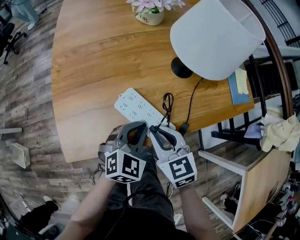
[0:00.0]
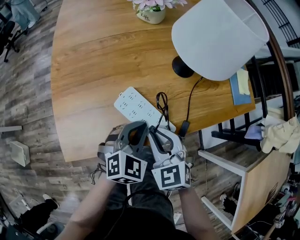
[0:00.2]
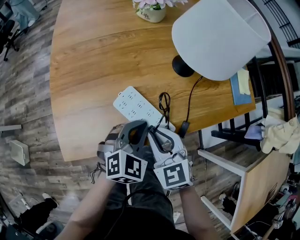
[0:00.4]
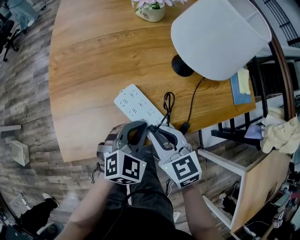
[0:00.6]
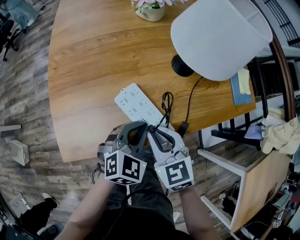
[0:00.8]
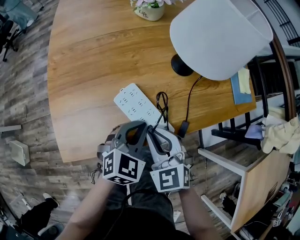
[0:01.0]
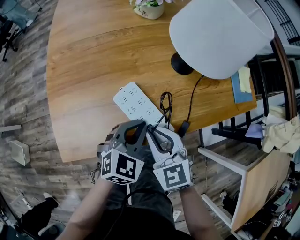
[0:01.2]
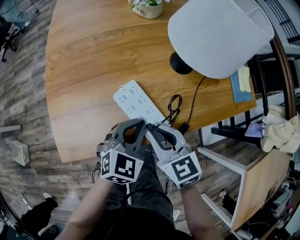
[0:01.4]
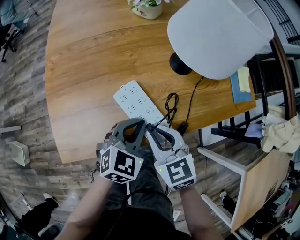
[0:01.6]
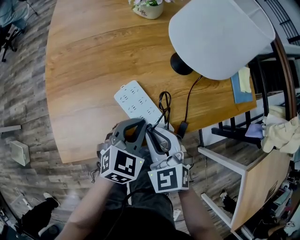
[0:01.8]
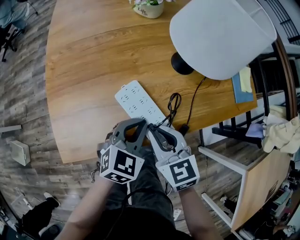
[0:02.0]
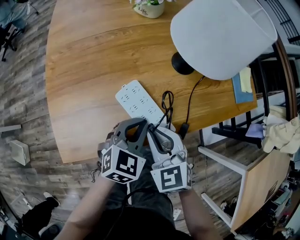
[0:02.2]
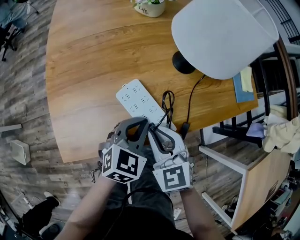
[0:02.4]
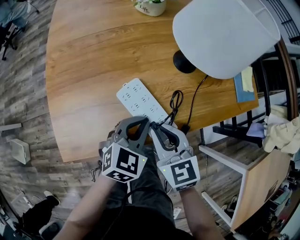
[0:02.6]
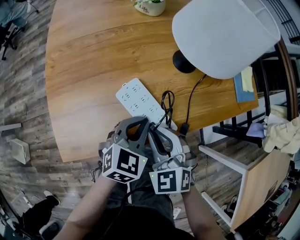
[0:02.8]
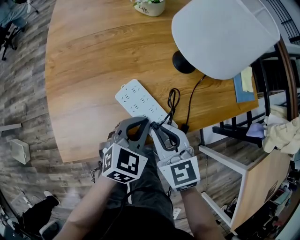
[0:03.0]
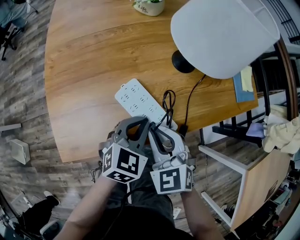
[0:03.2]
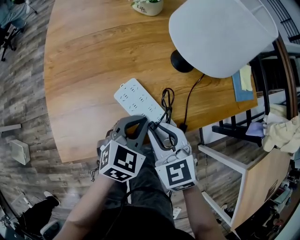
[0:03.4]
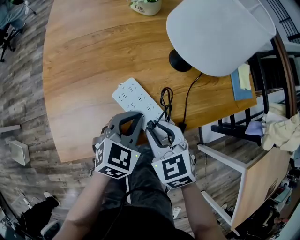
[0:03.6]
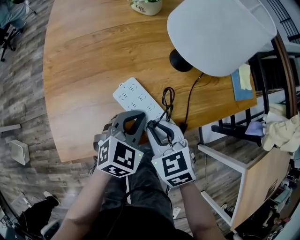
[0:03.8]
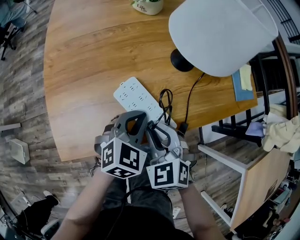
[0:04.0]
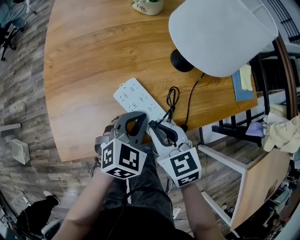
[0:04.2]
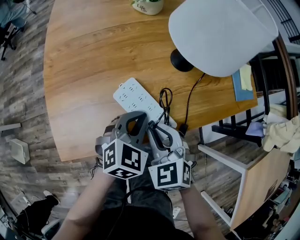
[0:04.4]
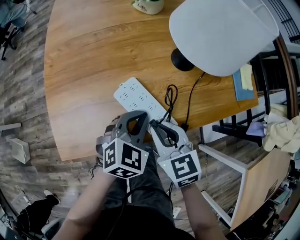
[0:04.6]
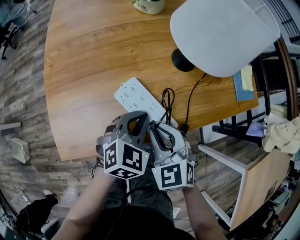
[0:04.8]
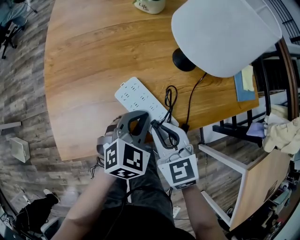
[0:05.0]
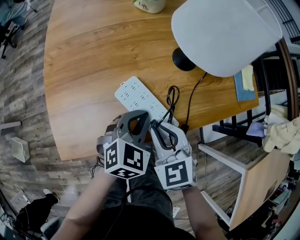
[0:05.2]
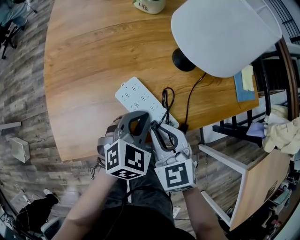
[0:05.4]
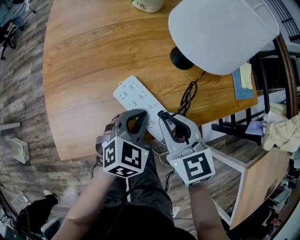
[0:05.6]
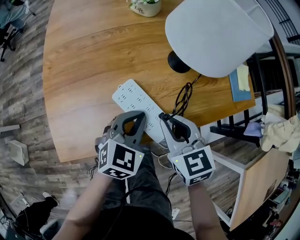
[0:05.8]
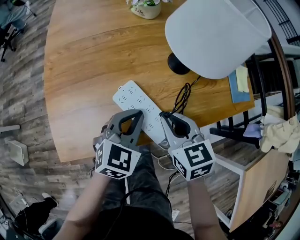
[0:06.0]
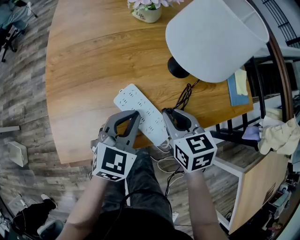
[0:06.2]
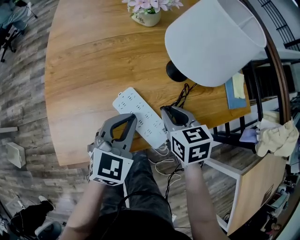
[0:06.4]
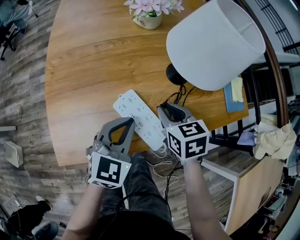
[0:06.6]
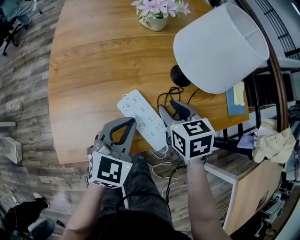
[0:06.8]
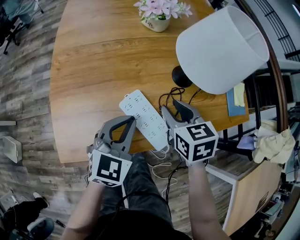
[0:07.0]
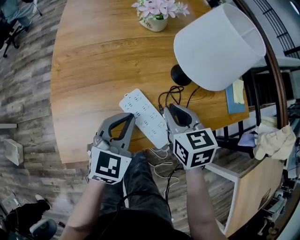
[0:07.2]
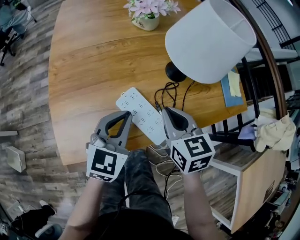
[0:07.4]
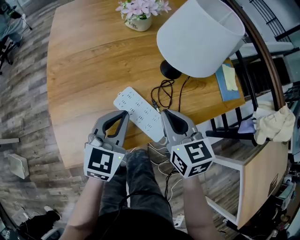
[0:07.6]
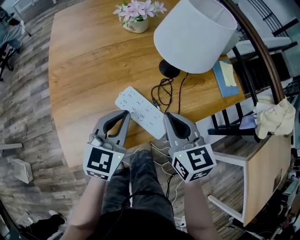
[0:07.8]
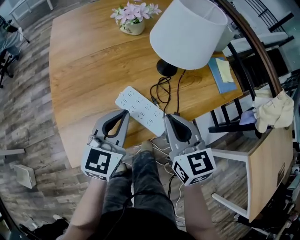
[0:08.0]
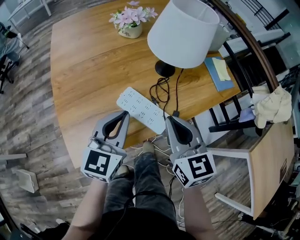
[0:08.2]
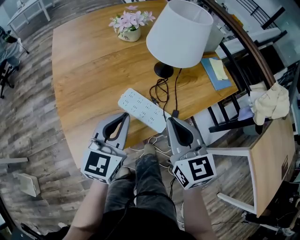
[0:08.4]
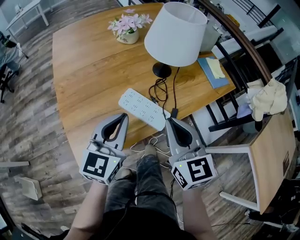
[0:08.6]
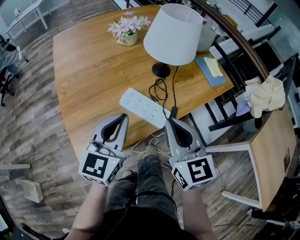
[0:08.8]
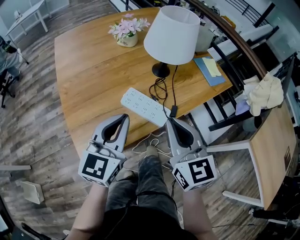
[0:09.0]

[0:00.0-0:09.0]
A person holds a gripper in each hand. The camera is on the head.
0:00.0 to 0:01.6: The grippers make only small movements.
0:03.0 to 0:04.4: The right gripper swivels approximately 20 degrees.
0:04.4 to 0:06.0: The right gripper ends up about 5 cm from where it was, and swivels some 30 degrees.
0:06.0 to 0:07.6: The left gripper moves about 5 cm; the right gripper ends up roughly 5 cm from where it was.
0:07.6 to 0:09.0: The right gripper heads backward and upward, covering some 15 cm, and changes its angle by some 20 degrees. The left gripper is displaced upward and backward by roughly 15 cm.

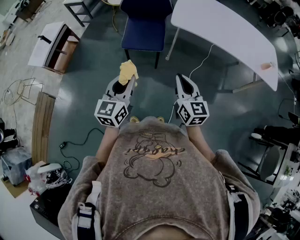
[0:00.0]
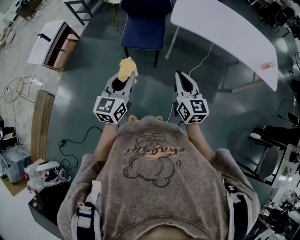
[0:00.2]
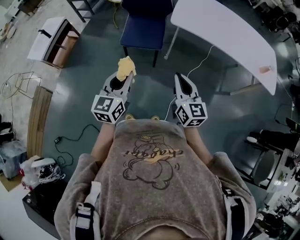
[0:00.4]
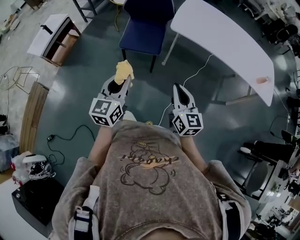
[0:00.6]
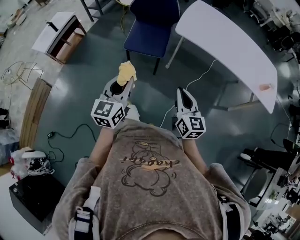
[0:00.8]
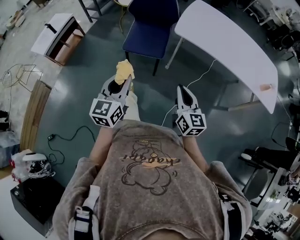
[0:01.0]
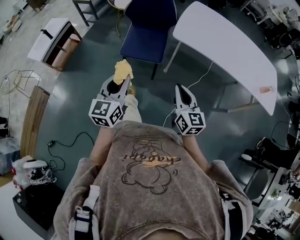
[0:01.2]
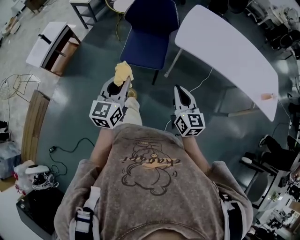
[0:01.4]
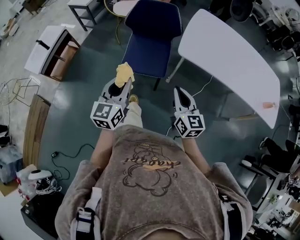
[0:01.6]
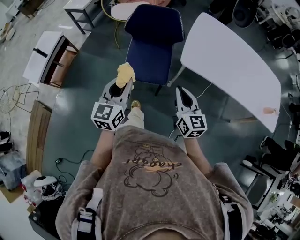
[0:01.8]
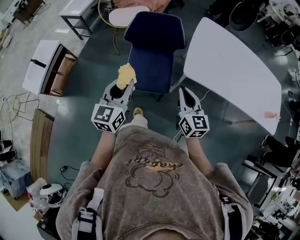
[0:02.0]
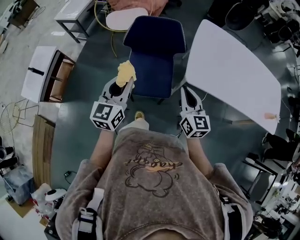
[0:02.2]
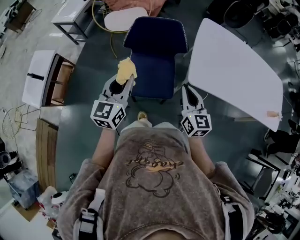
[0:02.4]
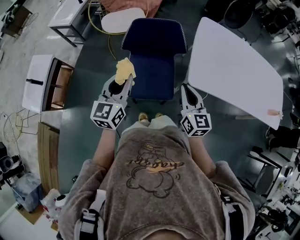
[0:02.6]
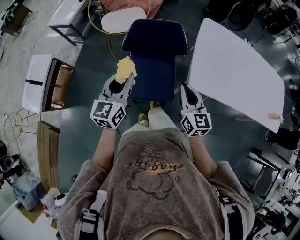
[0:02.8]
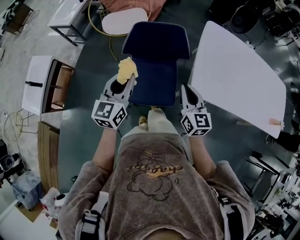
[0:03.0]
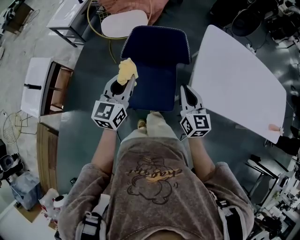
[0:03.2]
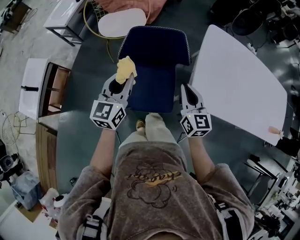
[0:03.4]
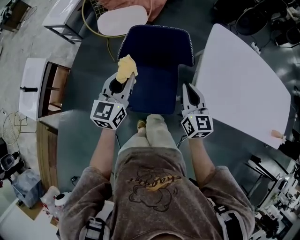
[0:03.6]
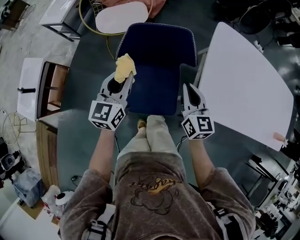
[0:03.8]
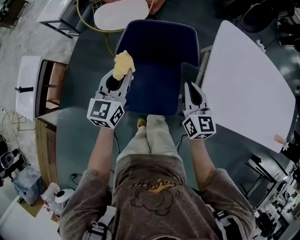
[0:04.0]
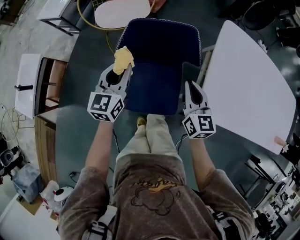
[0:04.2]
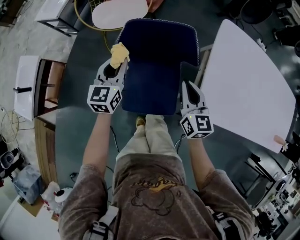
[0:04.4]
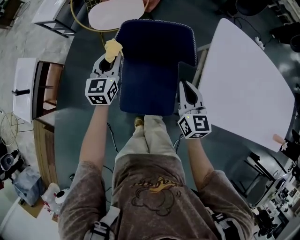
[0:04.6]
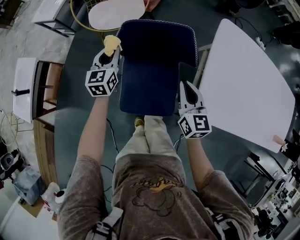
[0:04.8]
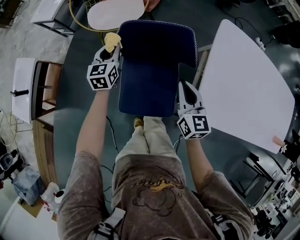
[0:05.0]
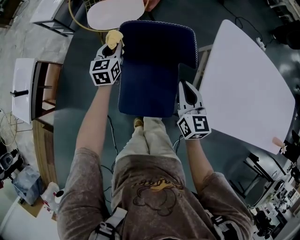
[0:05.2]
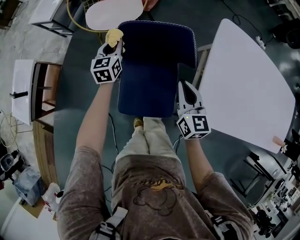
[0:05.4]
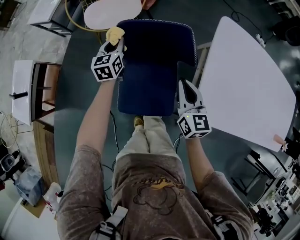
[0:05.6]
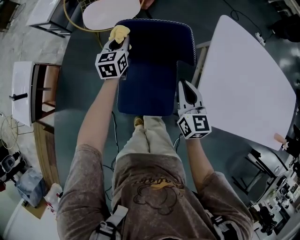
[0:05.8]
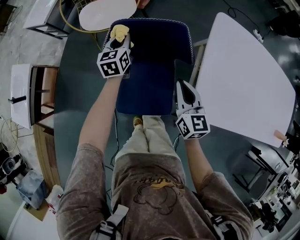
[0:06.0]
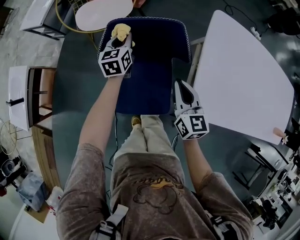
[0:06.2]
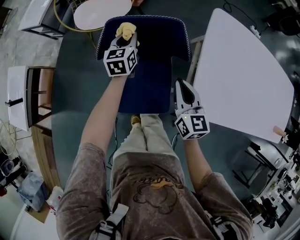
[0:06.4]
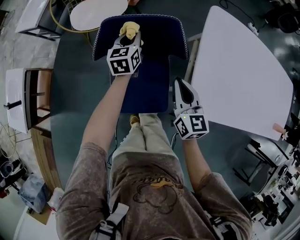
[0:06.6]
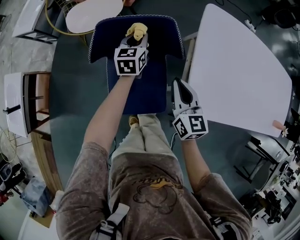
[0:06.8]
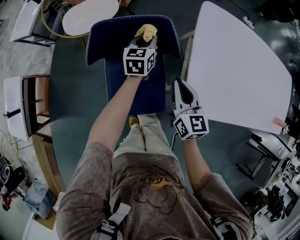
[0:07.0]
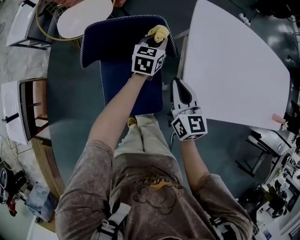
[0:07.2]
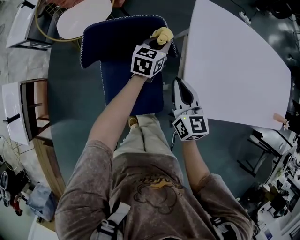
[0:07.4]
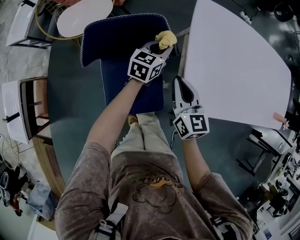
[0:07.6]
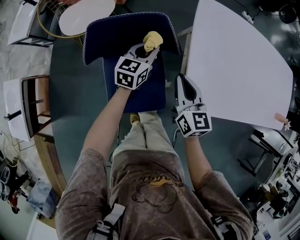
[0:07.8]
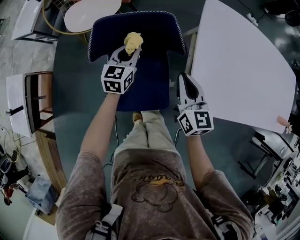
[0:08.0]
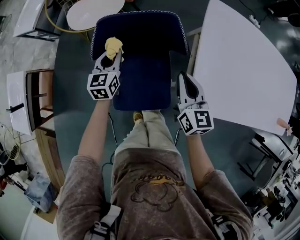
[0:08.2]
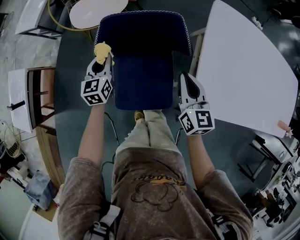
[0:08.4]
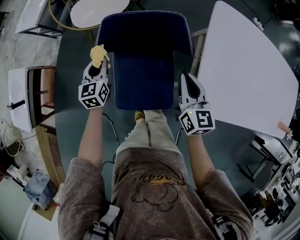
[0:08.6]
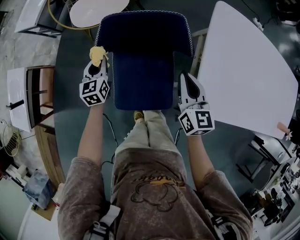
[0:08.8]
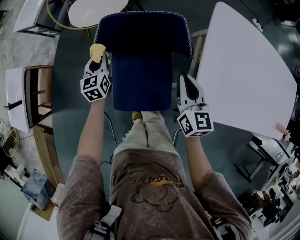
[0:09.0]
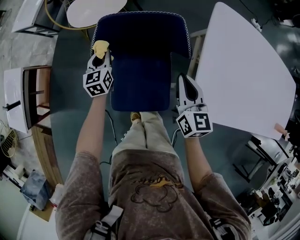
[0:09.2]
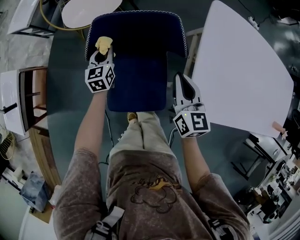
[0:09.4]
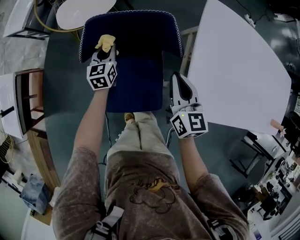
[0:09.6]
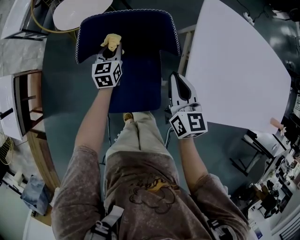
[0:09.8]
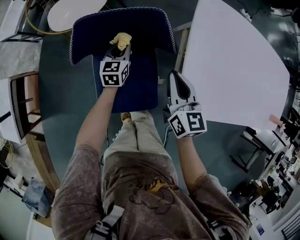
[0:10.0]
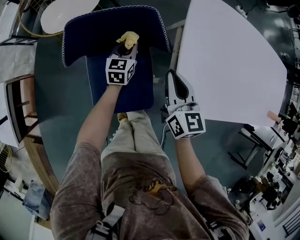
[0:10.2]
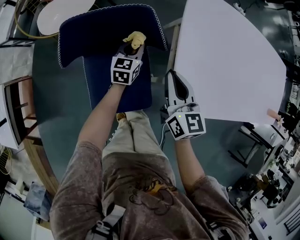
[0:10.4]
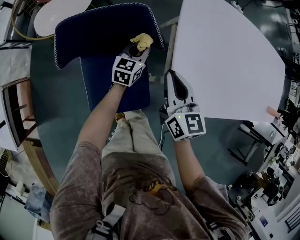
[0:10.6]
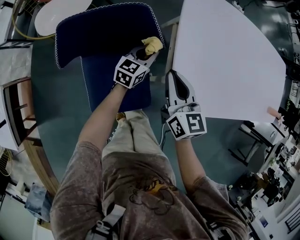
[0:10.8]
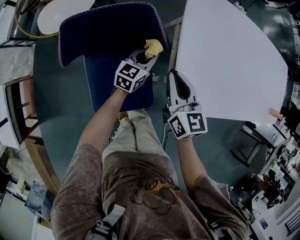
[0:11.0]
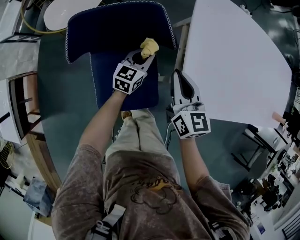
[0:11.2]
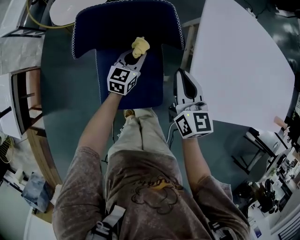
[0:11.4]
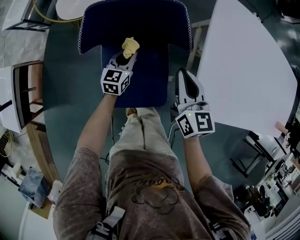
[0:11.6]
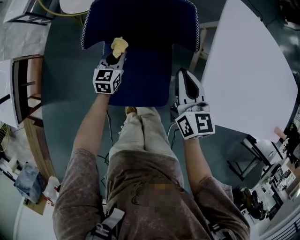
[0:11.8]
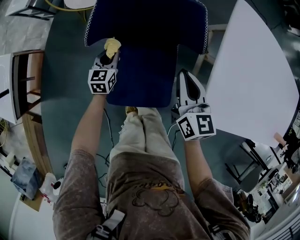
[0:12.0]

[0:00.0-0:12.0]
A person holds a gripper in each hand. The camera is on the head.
0:00.0 to 0:01.6: Both grippers move forward, about 20 cm.
0:01.6 to 0:03.0: The grippers both shift forward by approximately 30 cm.
0:03.0 to 0:04.4: Both grippers move forward and downward, some 20 cm.
0:04.4 to 0:06.0: The left gripper travels forward and downward by roughly 15 cm.
0:06.0 to 0:07.6: The left gripper shifts approximately 25 cm to the right, and changes its angle by some 40 degrees, while the right gripper goes some 5 cm to the right.
0:07.6 to 0:09.0: The left gripper shifts by roughly 35 cm, and swivels some 40 degrees.
0:09.0 to 0:10.4: The right gripper travels to the right by some 5 cm. The left gripper shifts roughly 30 cm to the right, and rotates some 30 degrees.
0:10.4 to 0:12.0: The left gripper shifts about 25 cm to the left and backward, while the right gripper moves to the left, about 10 cm.

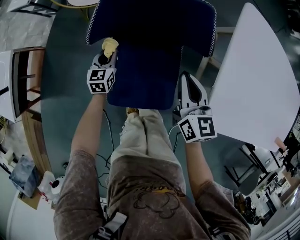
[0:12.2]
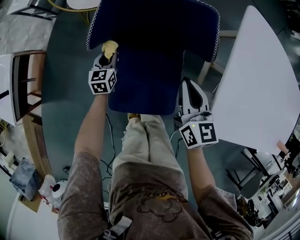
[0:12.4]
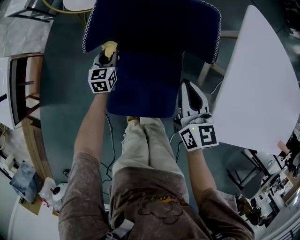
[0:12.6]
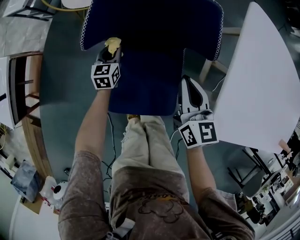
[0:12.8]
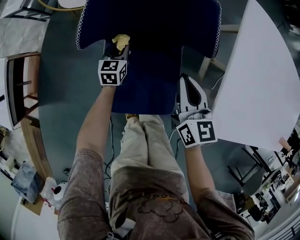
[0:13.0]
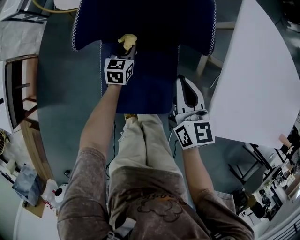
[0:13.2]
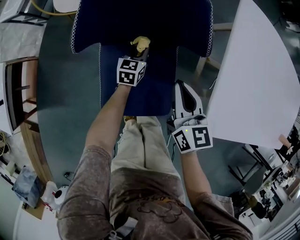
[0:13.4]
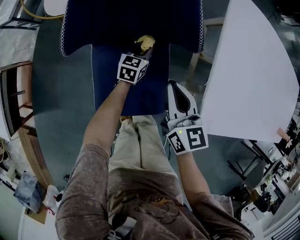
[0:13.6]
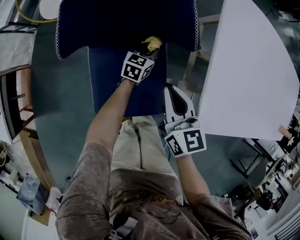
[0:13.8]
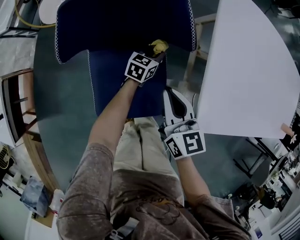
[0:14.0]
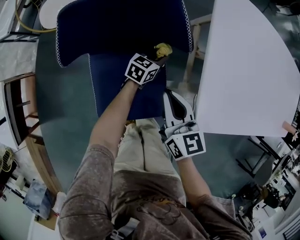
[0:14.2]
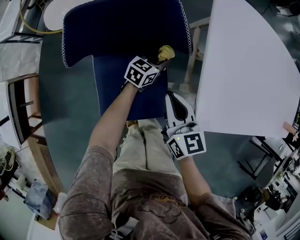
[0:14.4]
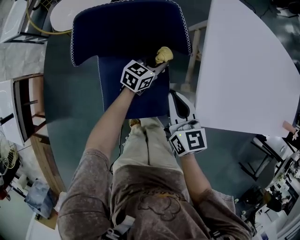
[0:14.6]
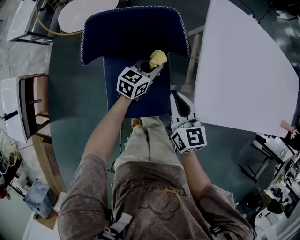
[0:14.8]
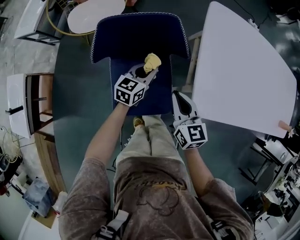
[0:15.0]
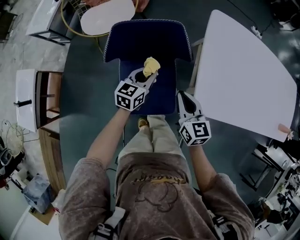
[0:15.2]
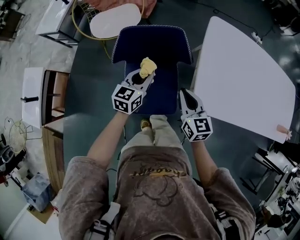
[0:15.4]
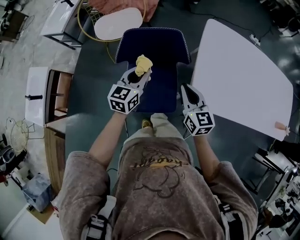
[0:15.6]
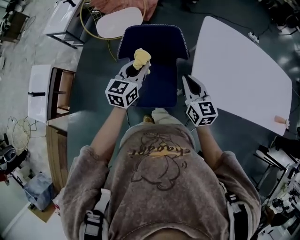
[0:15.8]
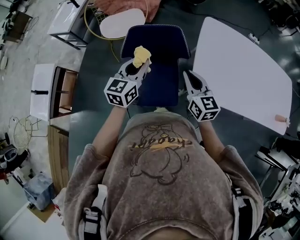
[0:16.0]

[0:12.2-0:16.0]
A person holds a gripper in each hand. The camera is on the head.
0:12.2 to 0:13.4: The left gripper travels to the right by approximately 15 cm.
0:13.4 to 0:14.8: The left gripper moves upward and to the right, approximately 15 cm, and turns by about 20 degrees; the right gripper ends up roughly 5 cm from where it was.
0:14.8 to 0:16.0: The right gripper heads upward, covering about 20 cm. Meanwhile the left gripper is displaced upward by some 35 cm, and rotates some 30 degrees.
